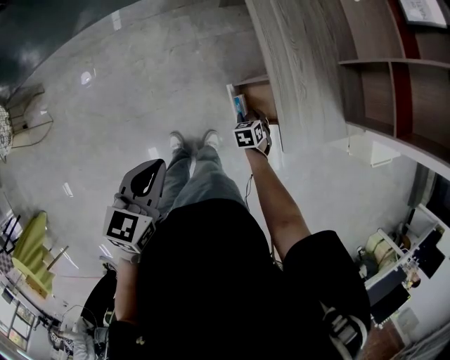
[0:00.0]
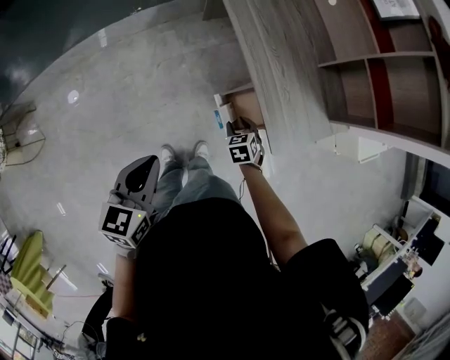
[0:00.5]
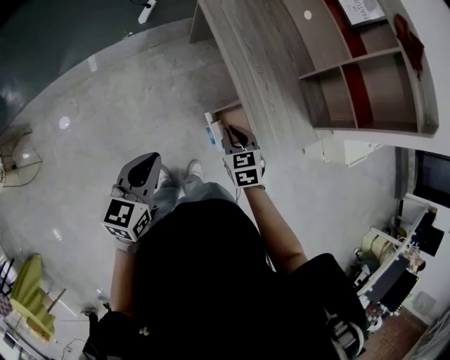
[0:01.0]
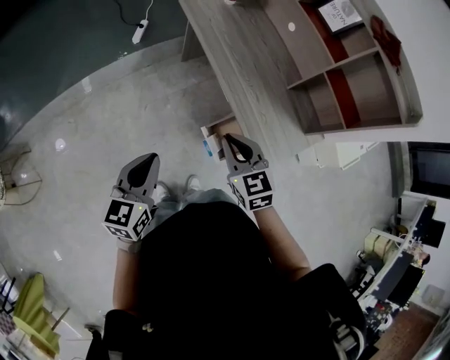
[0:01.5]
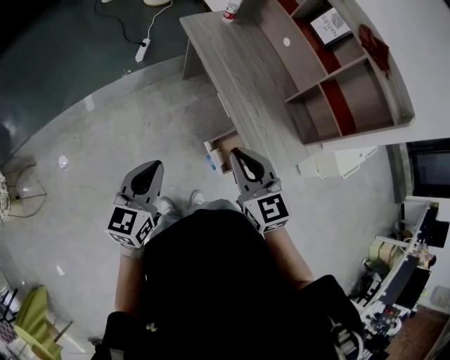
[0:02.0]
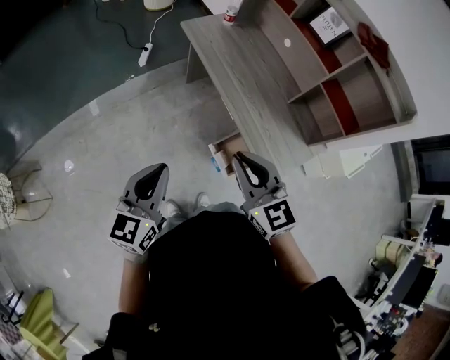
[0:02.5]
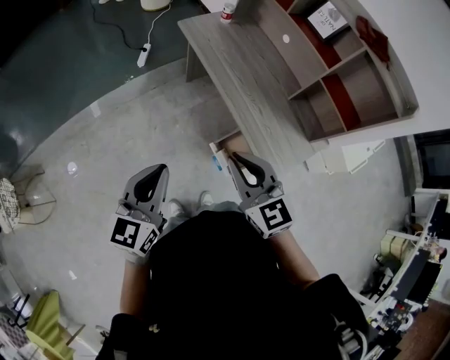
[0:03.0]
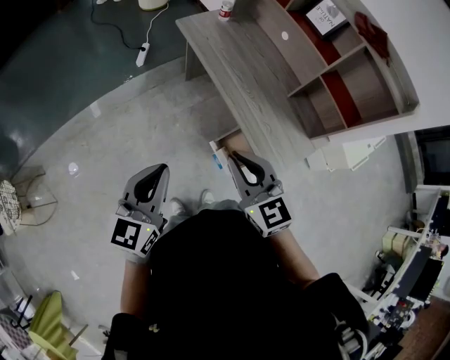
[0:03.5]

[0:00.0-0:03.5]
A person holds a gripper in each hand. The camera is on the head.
0:00.0 to 0:02.0: The right gripper is displaced upward by approximately 50 cm, tilts its fingers some 50 degrees upward, and closes its fingers; the left gripper moves upward and forward, roughly 10 cm, and turns by about 20 degrees.
0:02.0 to 0:03.5: The left gripper moves upward, roughly 5 cm.

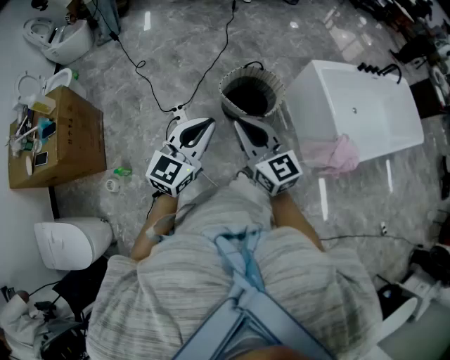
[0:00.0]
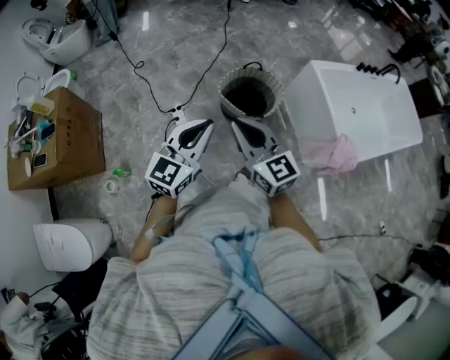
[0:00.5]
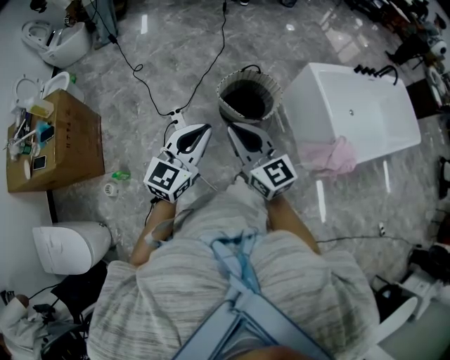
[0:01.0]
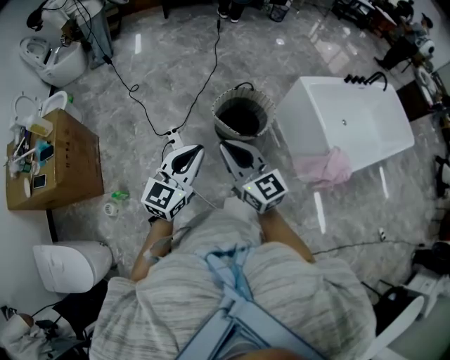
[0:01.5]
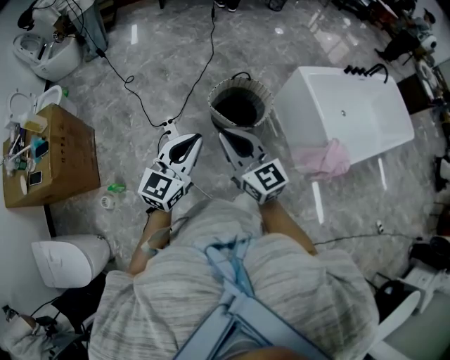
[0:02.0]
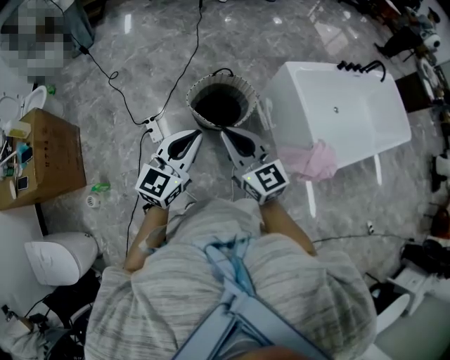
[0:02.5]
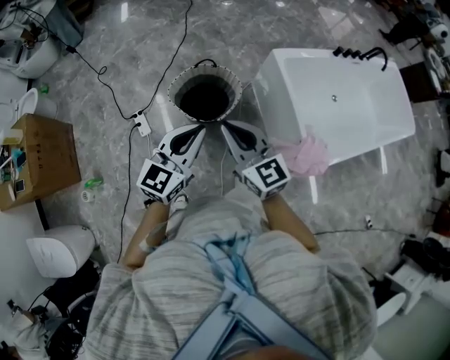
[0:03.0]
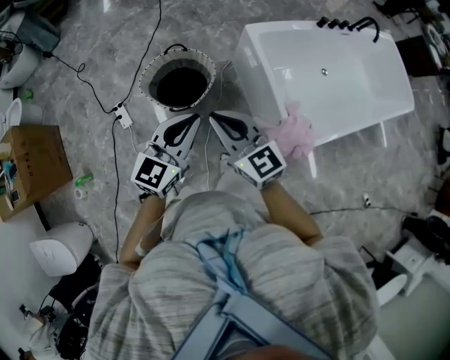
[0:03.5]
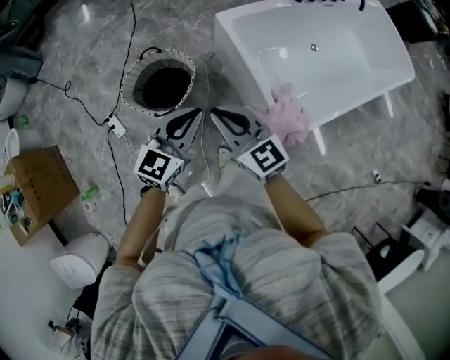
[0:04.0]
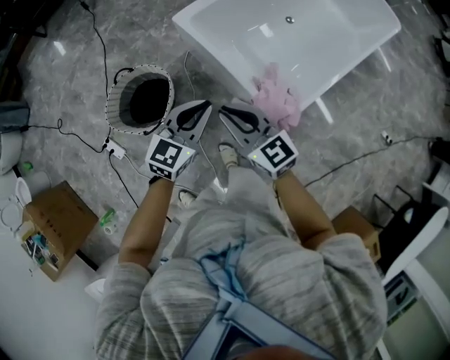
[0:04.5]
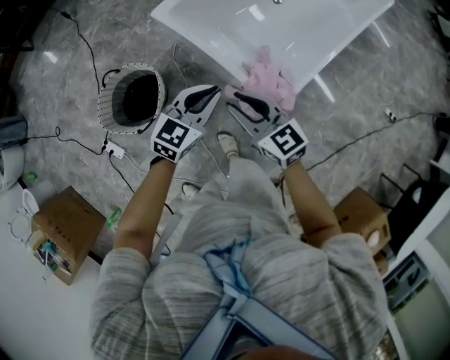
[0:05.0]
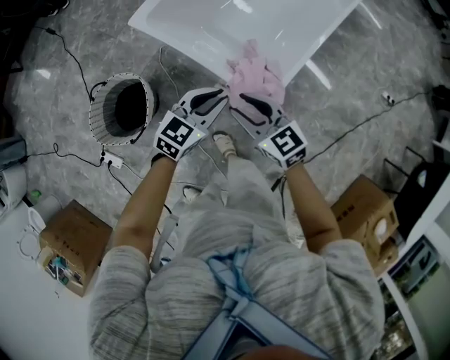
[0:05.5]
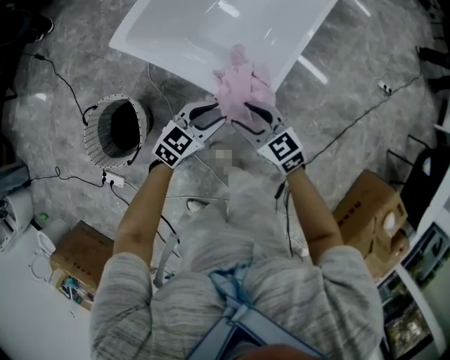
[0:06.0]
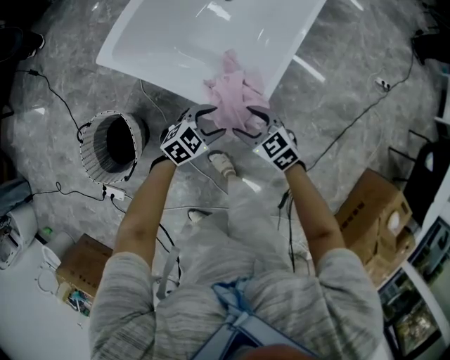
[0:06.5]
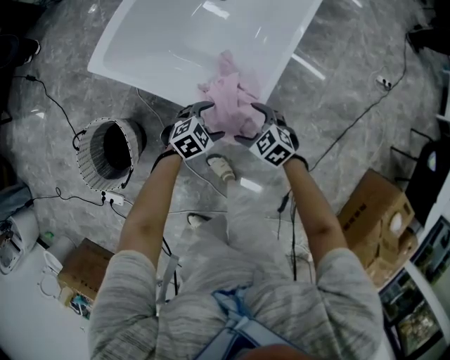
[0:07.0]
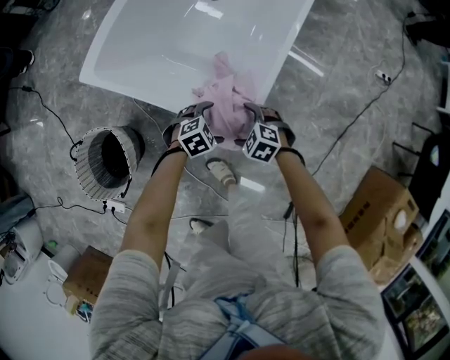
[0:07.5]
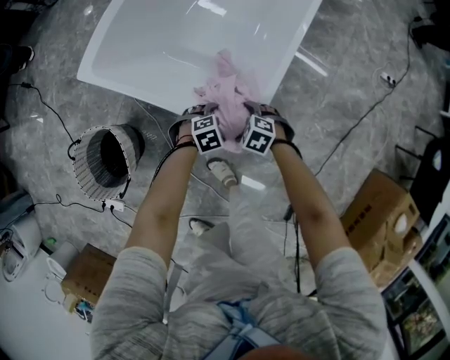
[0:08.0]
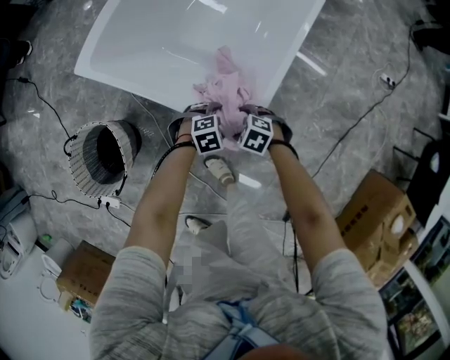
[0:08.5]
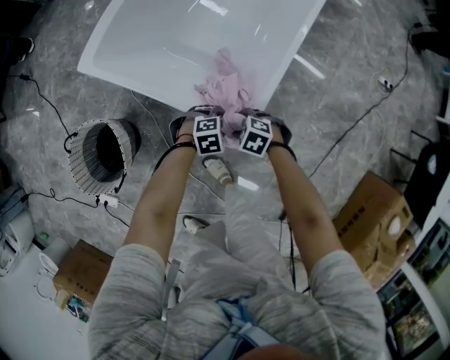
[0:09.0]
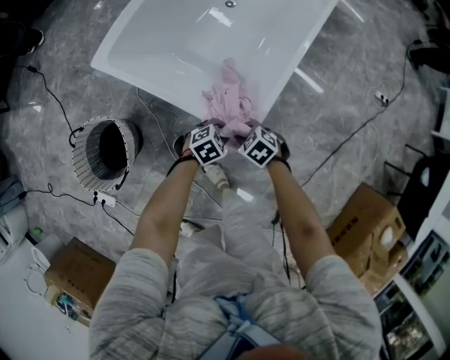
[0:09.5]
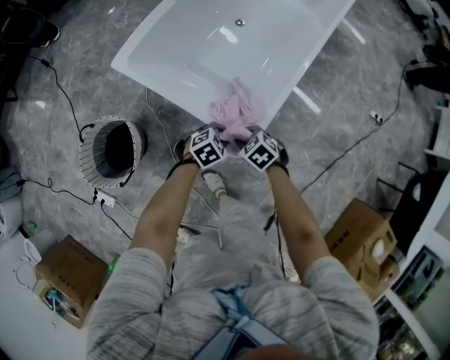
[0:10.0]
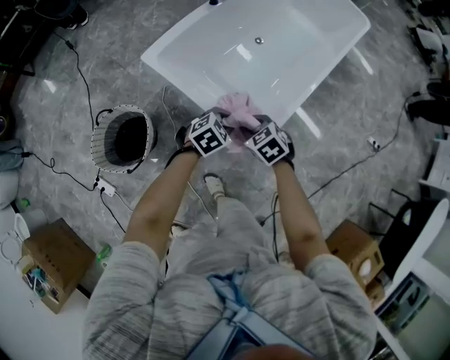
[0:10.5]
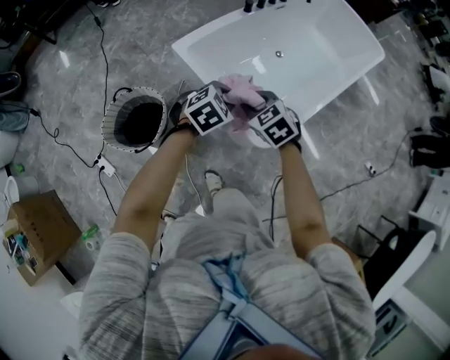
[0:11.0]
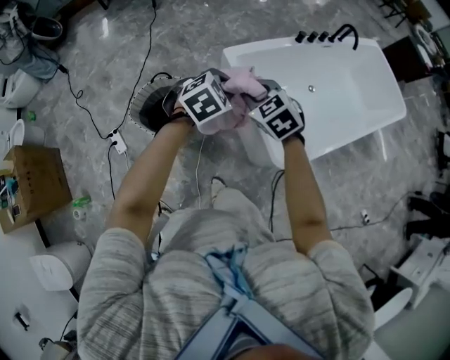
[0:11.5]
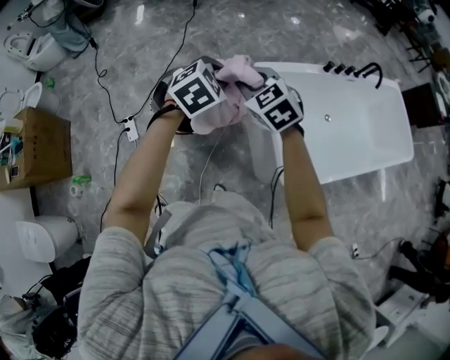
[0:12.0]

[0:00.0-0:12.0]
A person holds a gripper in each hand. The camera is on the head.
0:00.0 to 0:02.0: There are only small adjustments of the grippers.
0:02.0 to 0:04.0: The pair of grippers is taken to the right, roughly 50 cm.
0:04.0 to 0:06.0: The right gripper shifts by approximately 35 cm, rotates about 30 degrees, and opens its fingers. The left gripper shifts by about 35 cm, and rotates some 50 degrees.
0:06.0 to 0:08.0: The grippers both shift downward by roughly 25 cm. The left gripper tilts its fingers roughly 40 degrees downward, and opens, while the right gripper tilts its fingers approximately 40 degrees downward, and opens up.
0:08.0 to 0:10.0: Both grippers travel together upward, about 15 cm. The right gripper closes its fingers; the left gripper swivels approximately 20 degrees, and closes up.
0:10.0 to 0:12.0: Both grippers are carried roughly 40 cm. The right gripper rotates around the line of its fingers by some 50 degrees, counterclockwise from behind. The left gripper swivels some 60 degrees.

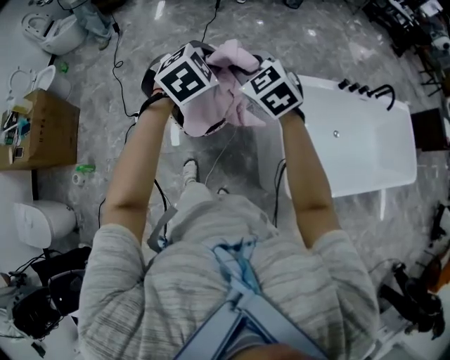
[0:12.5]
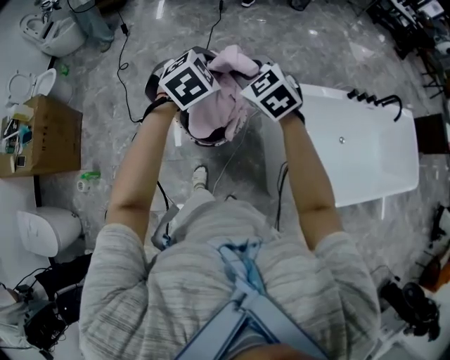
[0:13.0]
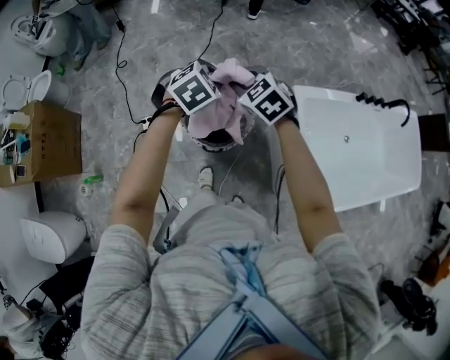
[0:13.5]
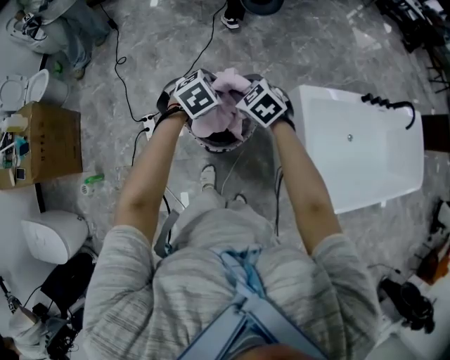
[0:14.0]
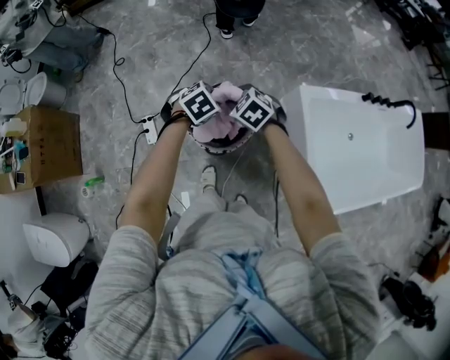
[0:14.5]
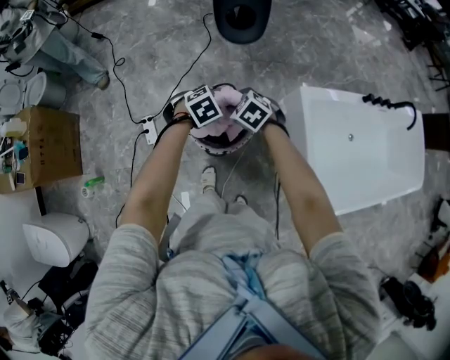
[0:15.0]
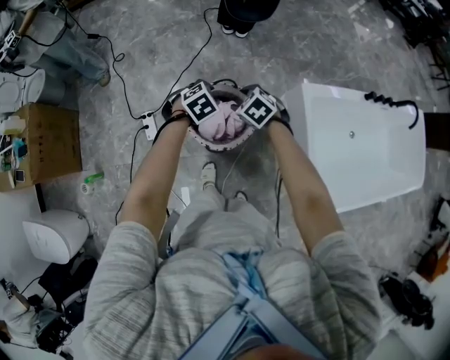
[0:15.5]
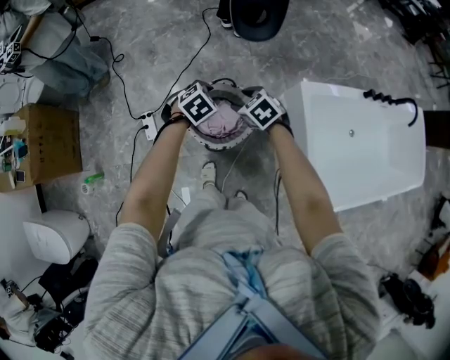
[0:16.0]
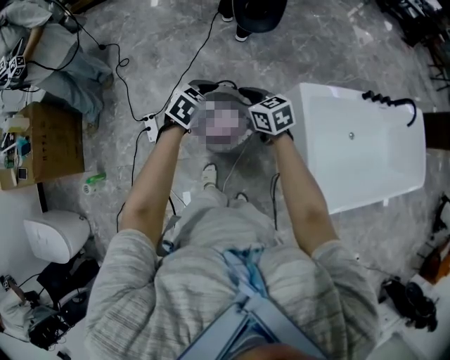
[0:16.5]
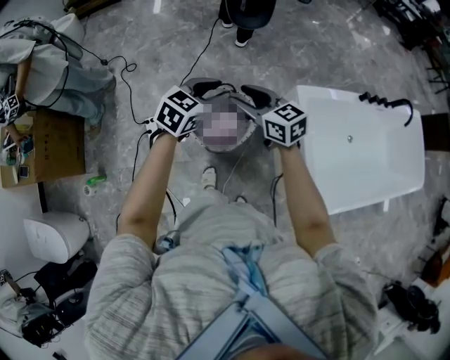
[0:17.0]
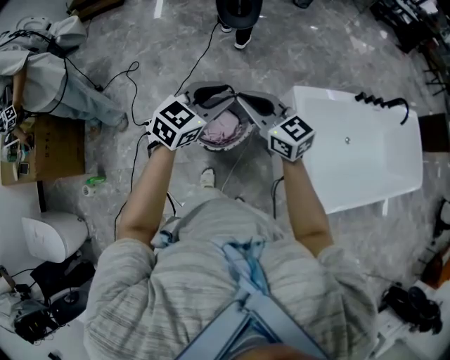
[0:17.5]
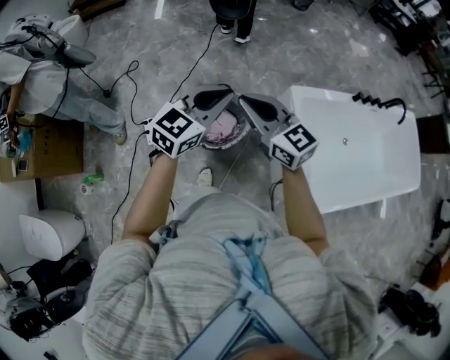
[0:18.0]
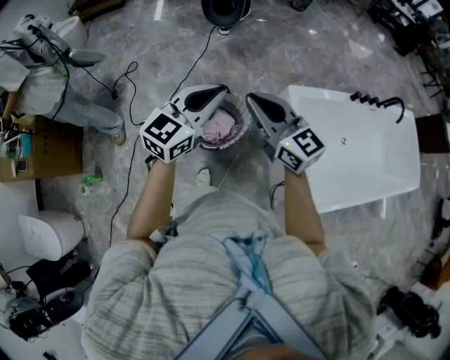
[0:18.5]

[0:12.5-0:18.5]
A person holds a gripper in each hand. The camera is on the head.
0:12.5 to 0:14.5: Both grippers travel together downward, to the left and forward, approximately 30 cm. The left gripper rotates approximately 30 degrees. Meanwhile the right gripper turns by approximately 30 degrees.
0:14.5 to 0:16.5: The left gripper heads upward, covering about 5 cm, and swivels some 20 degrees; the right gripper changes place by roughly 5 cm, and turns by some 40 degrees.
0:16.5 to 0:18.5: Both grippers move upward and backward, some 25 cm. The left gripper tilts its fingers about 40 degrees upward. Meanwhile the right gripper tips its fingers upward by approximately 30 degrees, and closes up.

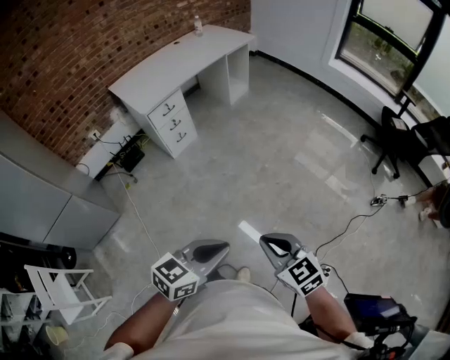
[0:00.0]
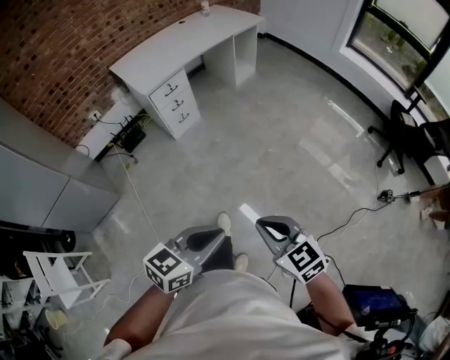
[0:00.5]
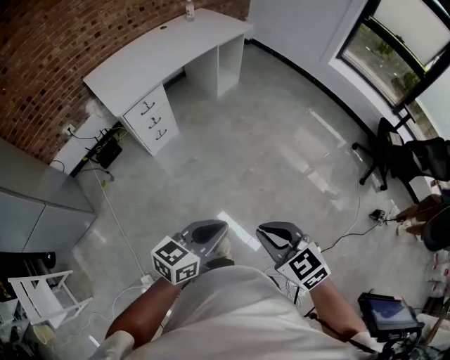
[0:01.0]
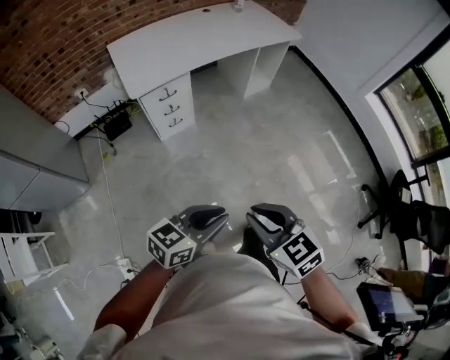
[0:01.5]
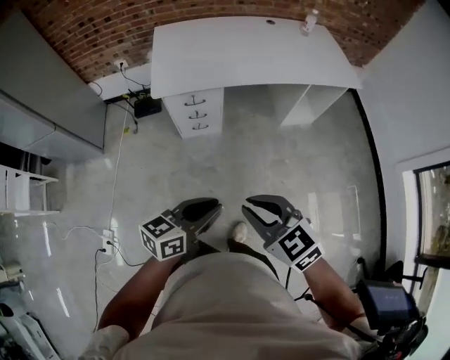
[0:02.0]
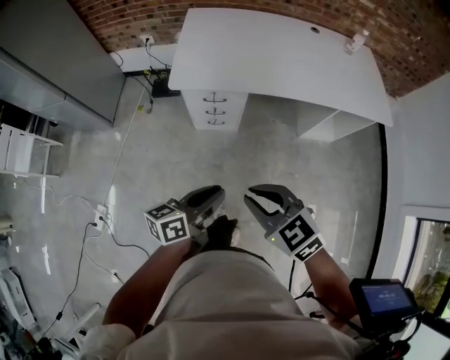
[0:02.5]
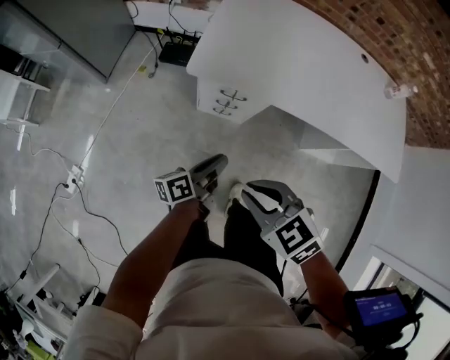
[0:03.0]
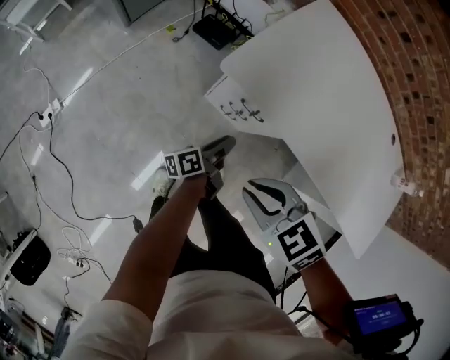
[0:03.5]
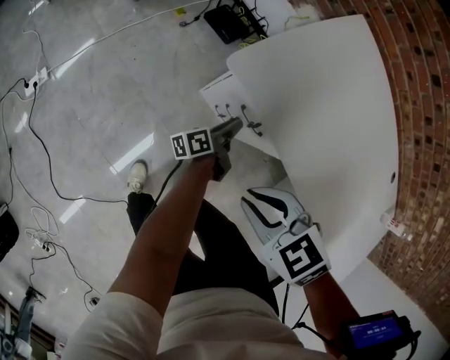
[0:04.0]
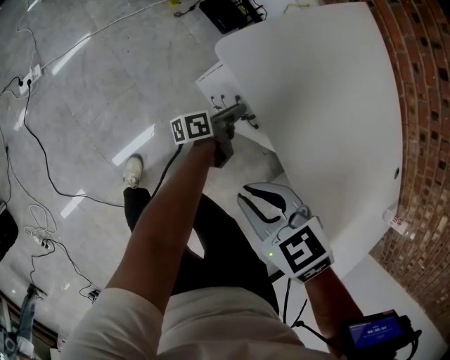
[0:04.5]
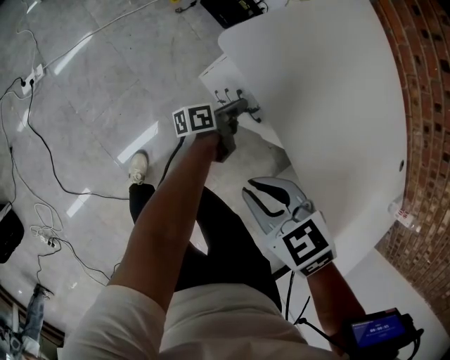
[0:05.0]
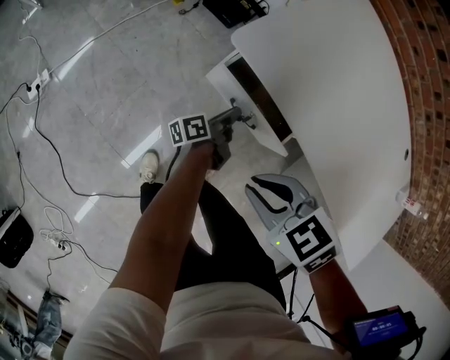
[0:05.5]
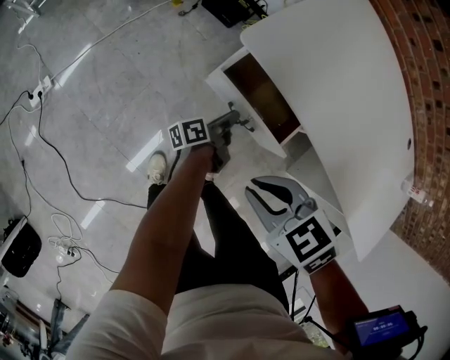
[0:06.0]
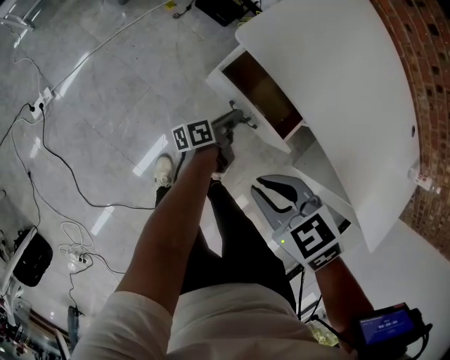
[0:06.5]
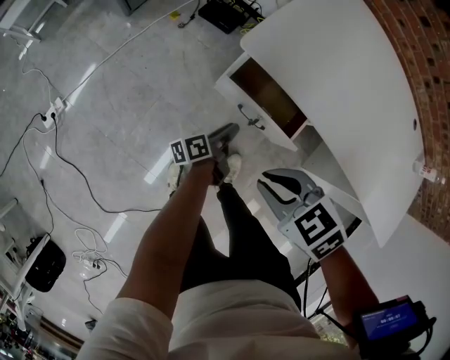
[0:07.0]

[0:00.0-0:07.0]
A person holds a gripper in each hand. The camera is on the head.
0:00.0 to 0:02.0: Both grippers are carried approximately 60 cm. The right gripper turns by approximately 50 degrees. Meanwhile the left gripper swivels about 50 degrees.
0:02.0 to 0:03.5: The right gripper ends up roughly 40 cm from where it was, and turns by about 50 degrees. Meanwhile the left gripper ends up roughly 50 cm from where it was, and turns by some 80 degrees.
0:03.5 to 0:05.0: The left gripper moves downward, to the right and forward, approximately 15 cm. Meanwhile the right gripper heads downward and to the right, covering about 10 cm.
0:05.0 to 0:07.0: The left gripper shifts roughly 15 cm to the left and backward. The right gripper goes roughly 5 cm to the left.
